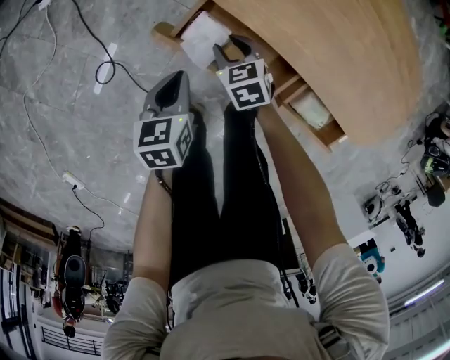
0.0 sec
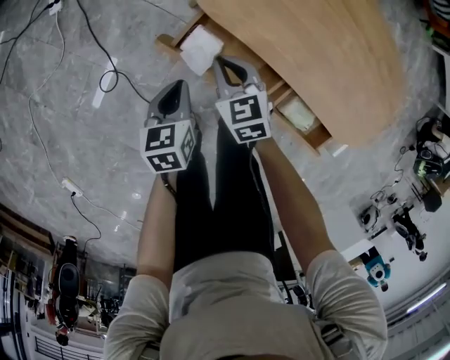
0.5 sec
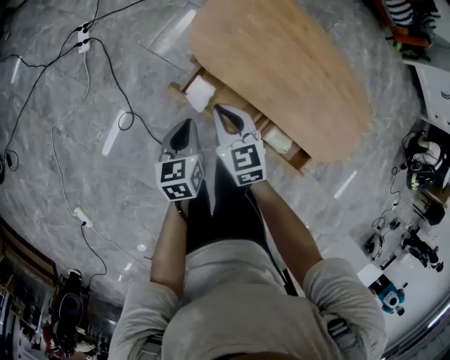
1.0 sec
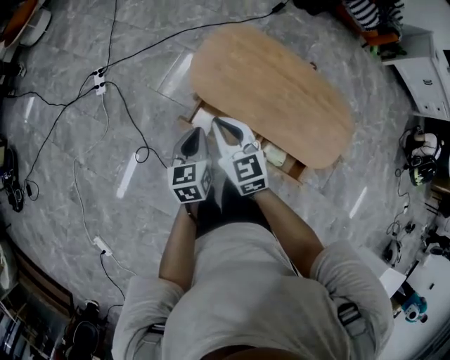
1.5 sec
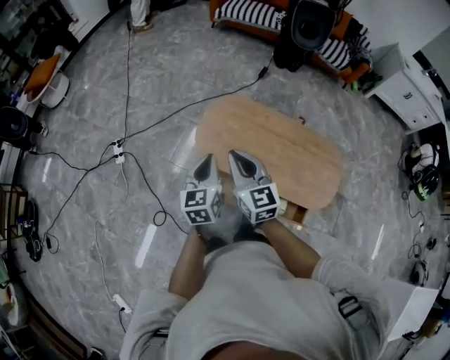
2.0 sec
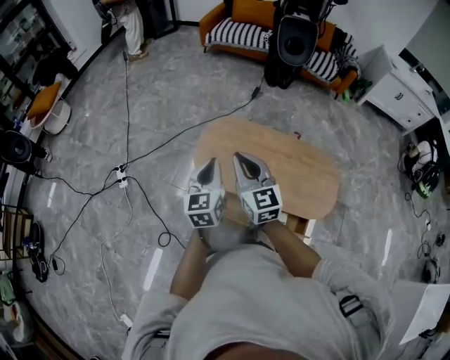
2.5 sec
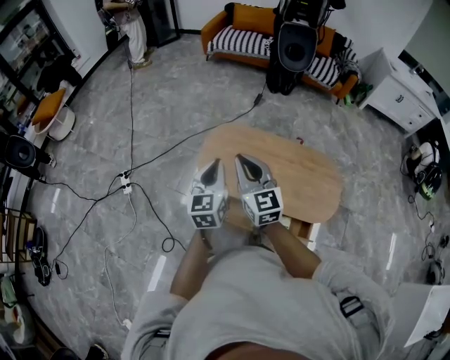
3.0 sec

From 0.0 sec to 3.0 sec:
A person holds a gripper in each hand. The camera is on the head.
From 0.0 sec to 1.5 sec: The grippers both shift upward by some 40 cm. The left gripper swivels about 20 degrees; the right gripper points its fingers approximately 30 degrees further upward, and closes its fingers.
From 1.5 sec to 3.0 sec: The left gripper heads upward, covering roughly 20 cm, and swivels approximately 30 degrees. Meanwhile the right gripper is displaced upward and to the right by about 20 cm, and turns by approximately 30 degrees.

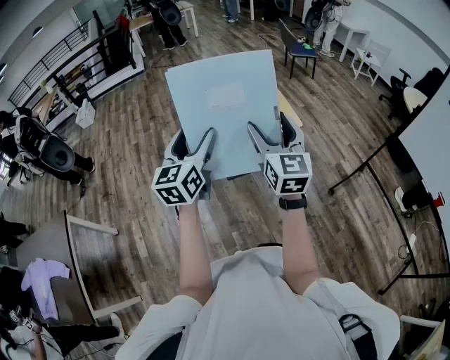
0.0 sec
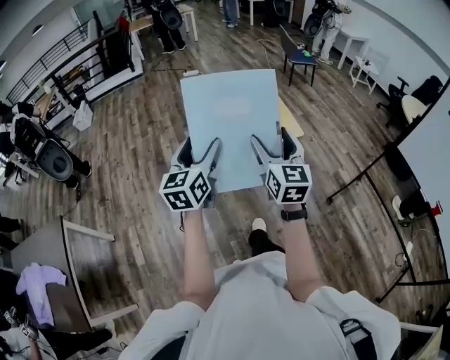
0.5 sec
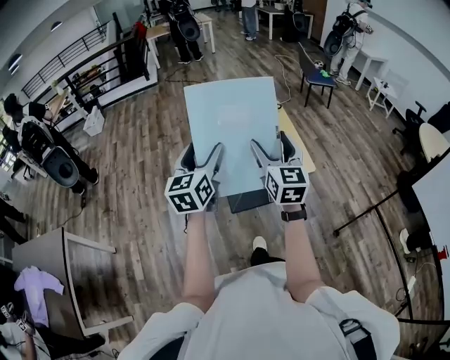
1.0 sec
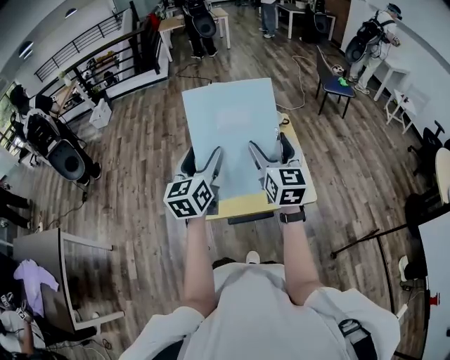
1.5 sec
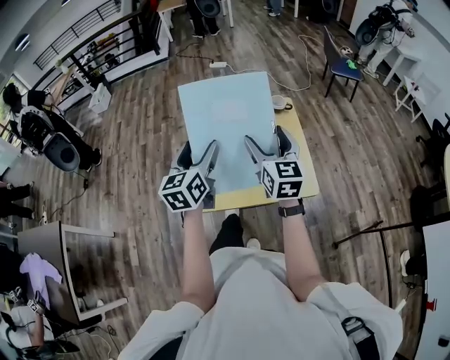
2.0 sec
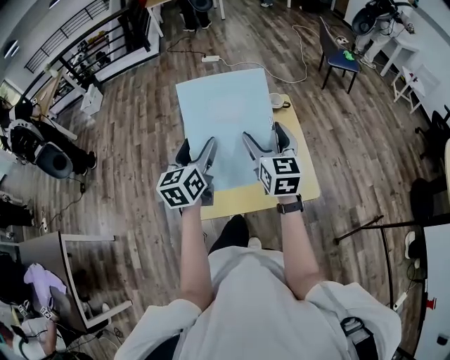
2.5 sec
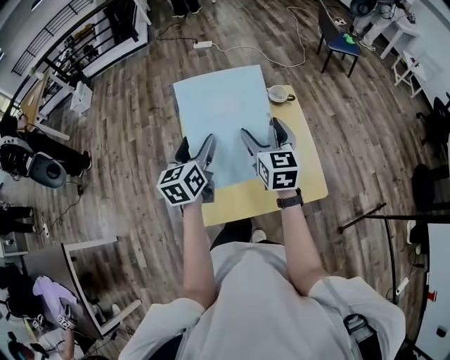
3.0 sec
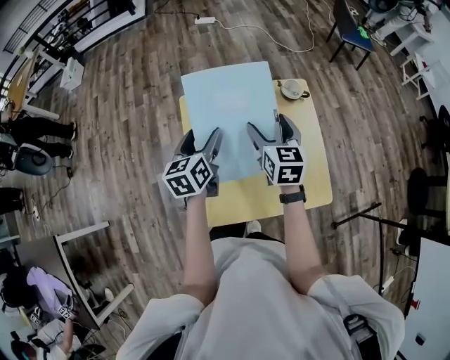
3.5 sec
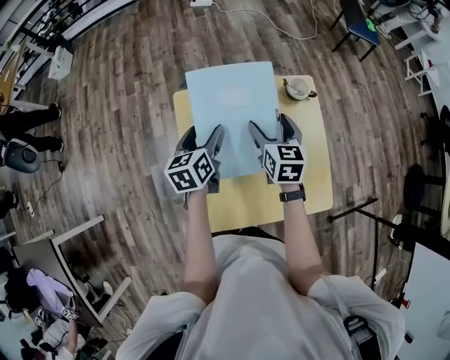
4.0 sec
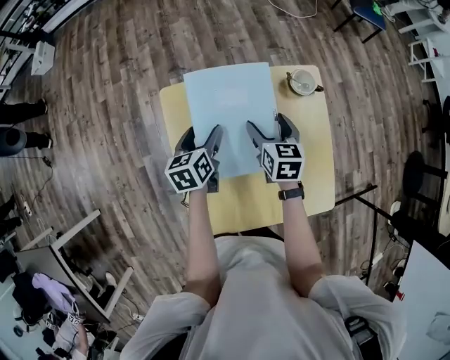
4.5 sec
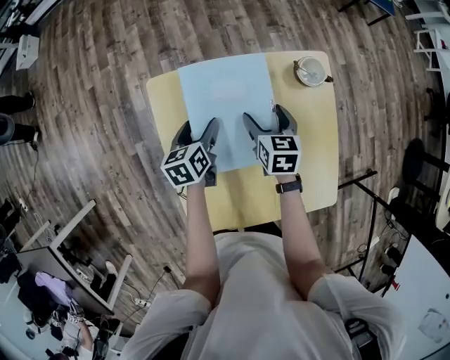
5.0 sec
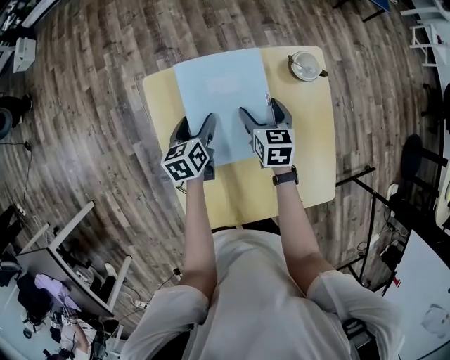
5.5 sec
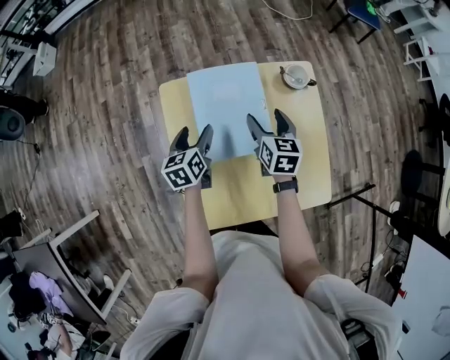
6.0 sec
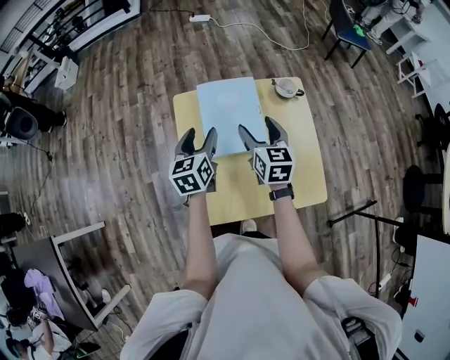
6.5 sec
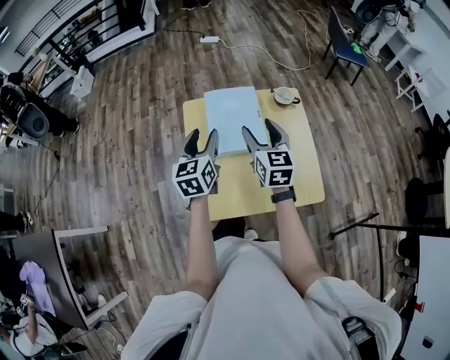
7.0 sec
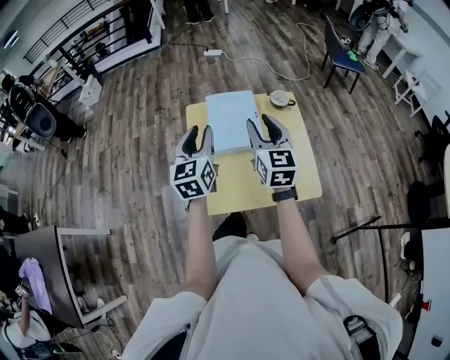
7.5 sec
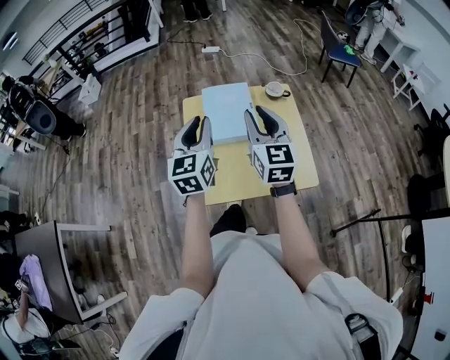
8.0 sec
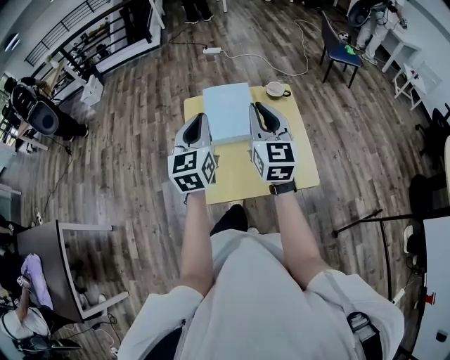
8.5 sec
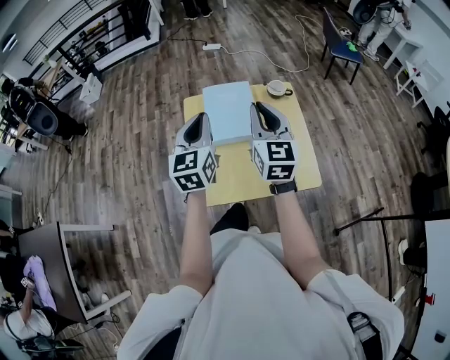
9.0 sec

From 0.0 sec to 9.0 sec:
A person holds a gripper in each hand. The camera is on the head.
From 0.0 sec to 2.0 sec: The grippers both shift forward by about 40 cm.
From 2.0 sec to 4.5 sec: Both grippers move forward and downward, approximately 40 cm. The right gripper angles its fingers downward, by approximately 30 degrees, while the left gripper rotates approximately 30 degrees.
From 4.5 sec to 7.0 sec: The grippers both shift upward and backward by some 25 cm. The right gripper rotates roughly 30 degrees. The left gripper swivels some 30 degrees.
From 7.0 sec to 9.0 sec: The two grippers go approximately 15 cm upward and backward. The right gripper closes up; the left gripper closes.

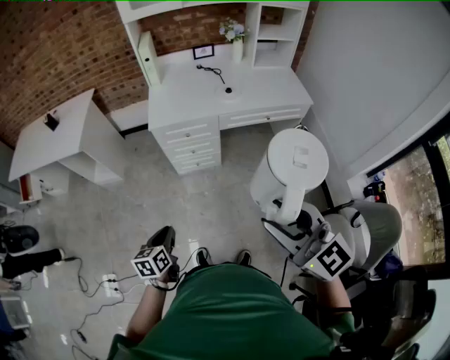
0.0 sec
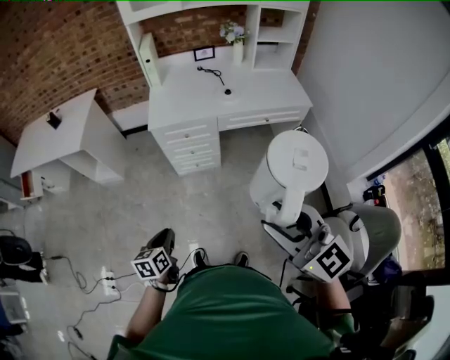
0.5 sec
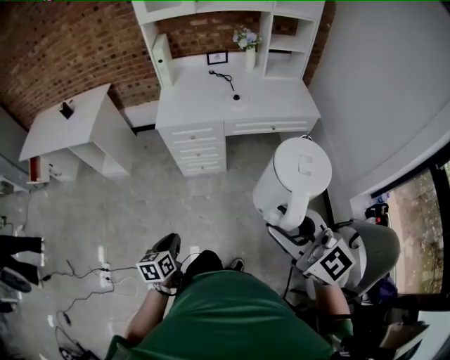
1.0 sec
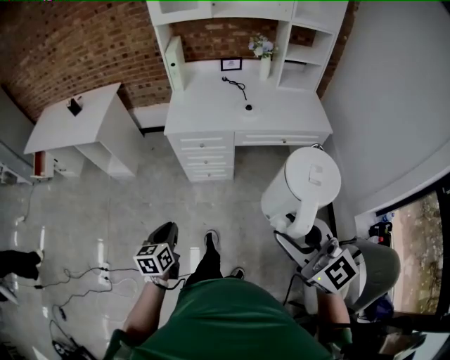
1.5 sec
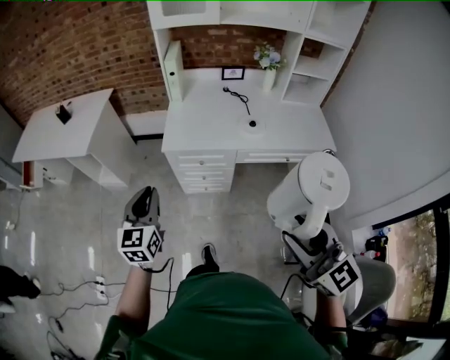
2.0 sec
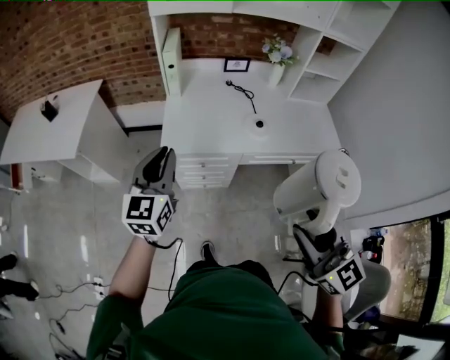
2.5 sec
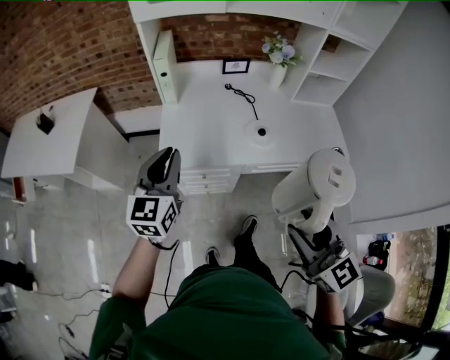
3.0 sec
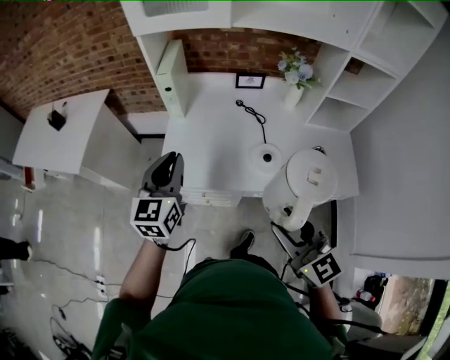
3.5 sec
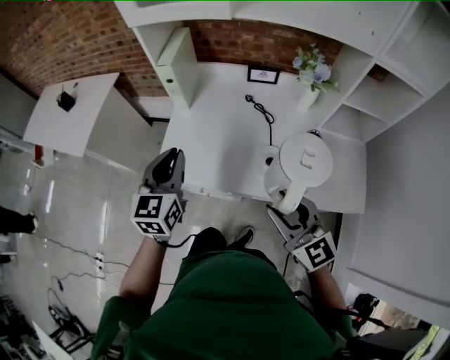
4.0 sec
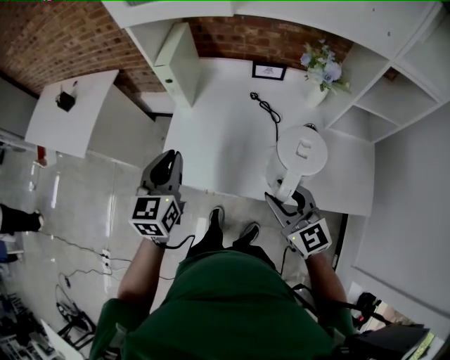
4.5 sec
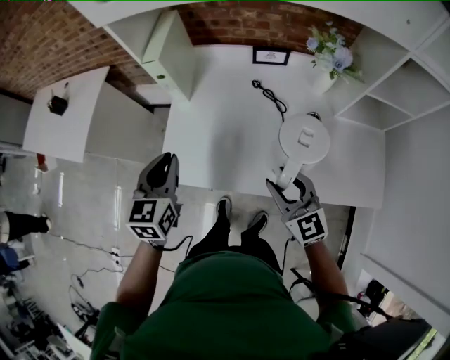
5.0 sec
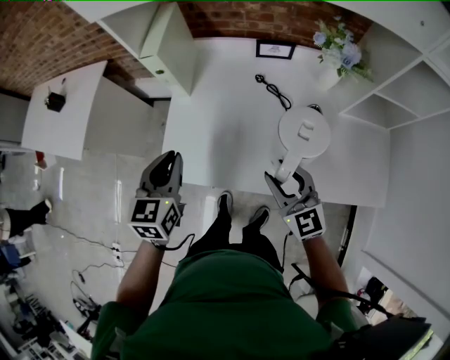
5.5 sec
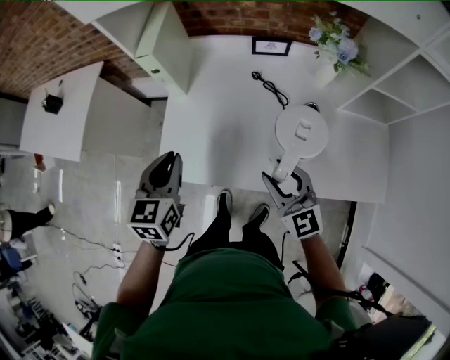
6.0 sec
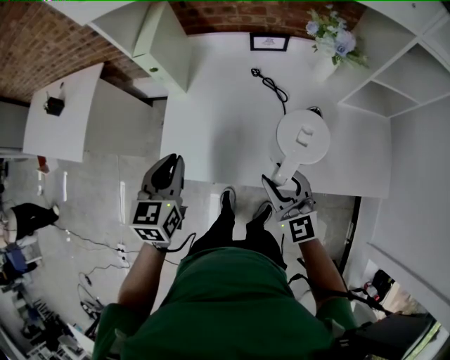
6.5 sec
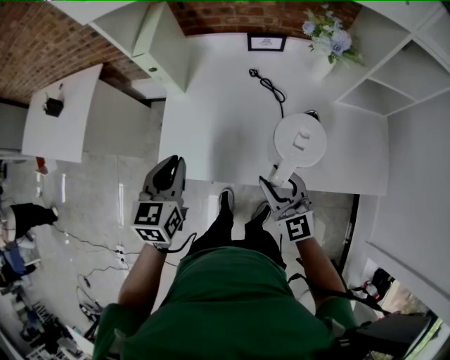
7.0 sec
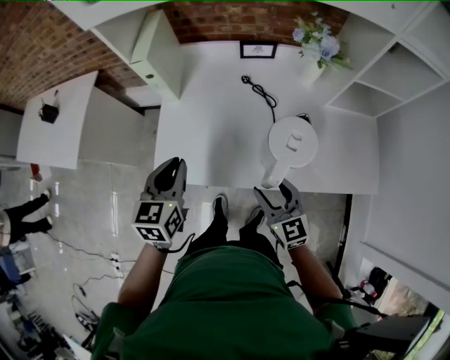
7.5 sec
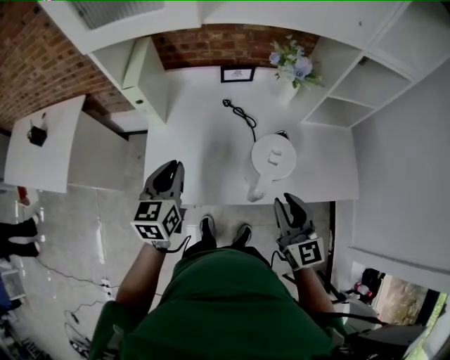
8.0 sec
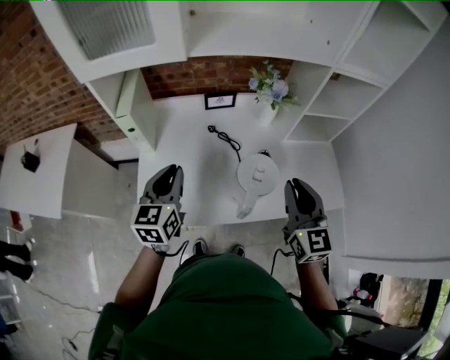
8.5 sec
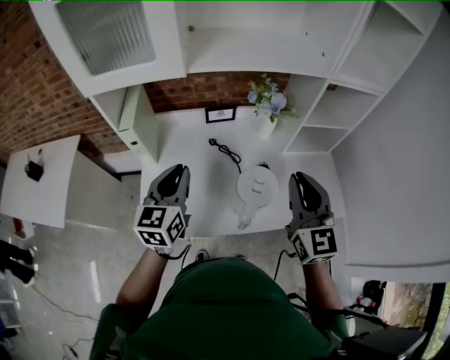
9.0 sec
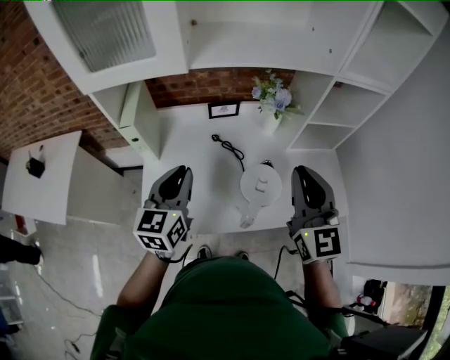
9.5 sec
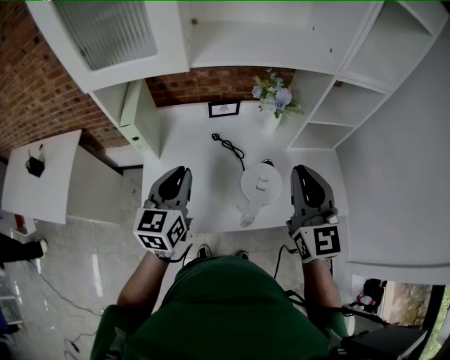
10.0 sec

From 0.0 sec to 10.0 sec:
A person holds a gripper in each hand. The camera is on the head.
From 0.0 sec to 2.0 sec: The left gripper moves forward and upward, approximately 30 cm, and rotates about 40 degrees, while the right gripper heads forward and to the right, covering roughly 15 cm.
From 2.0 sec to 4.0 sec: The two grippers travel together, forward and to the right, roughly 50 cm.
From 4.0 sec to 6.0 sec: The right gripper travels forward and downward by roughly 20 cm. The left gripper travels downward and forward by approximately 10 cm.
From 6.0 sec to 8.0 sec: The right gripper goes some 15 cm backward, to the right and upward, and rotates some 20 degrees. Meanwhile the left gripper shifts by some 5 cm.
From 8.0 sec to 10.0 sec: The left gripper shifts approximately 10 cm upward; the right gripper moves upward and forward, approximately 20 cm.

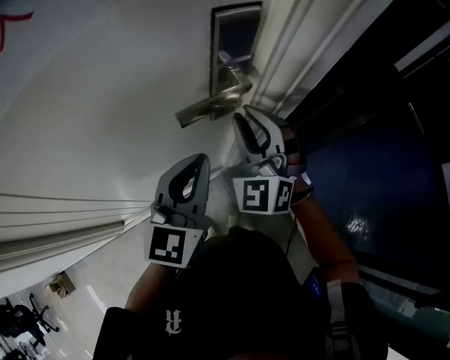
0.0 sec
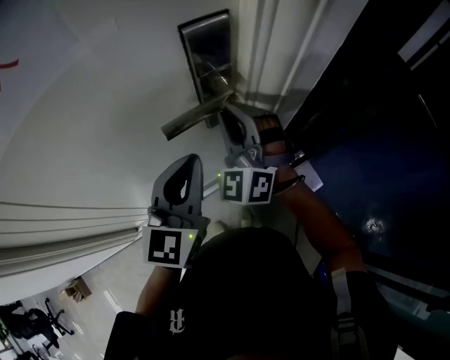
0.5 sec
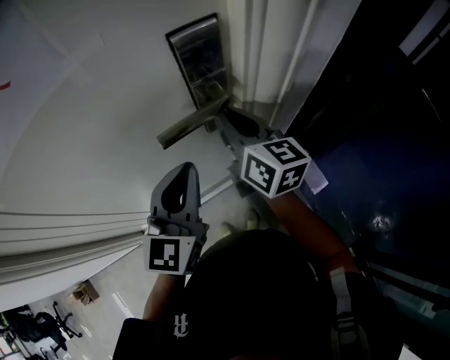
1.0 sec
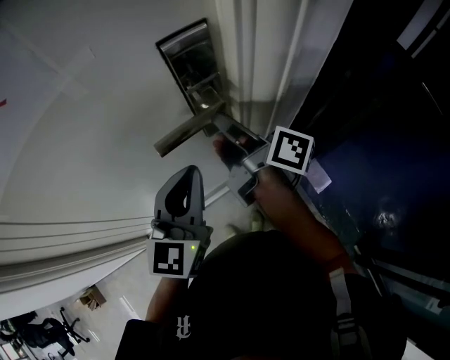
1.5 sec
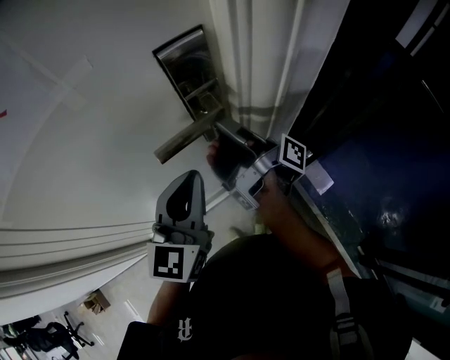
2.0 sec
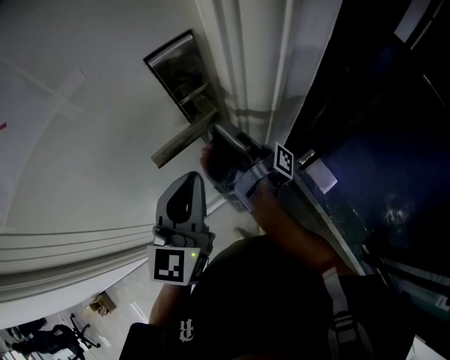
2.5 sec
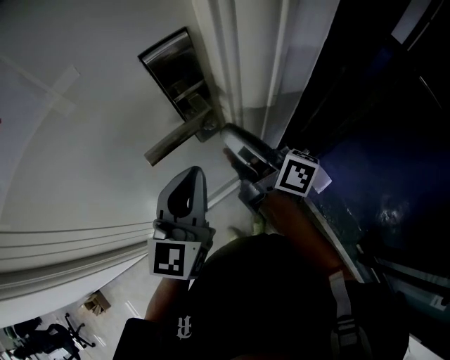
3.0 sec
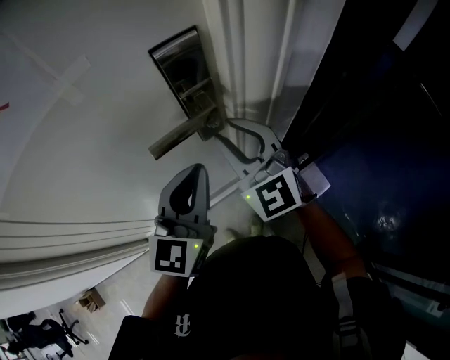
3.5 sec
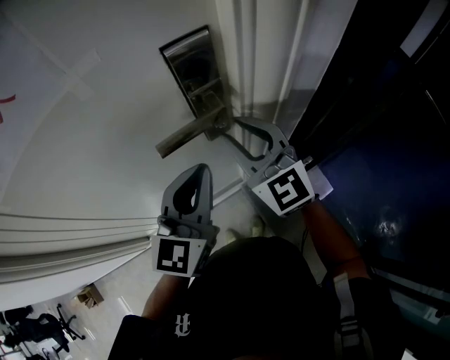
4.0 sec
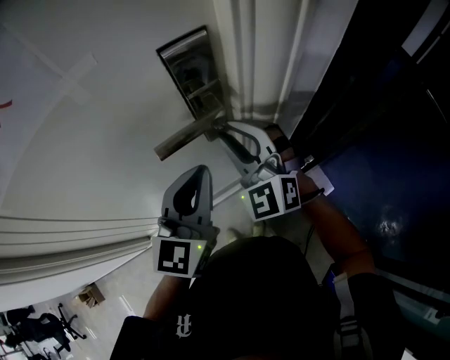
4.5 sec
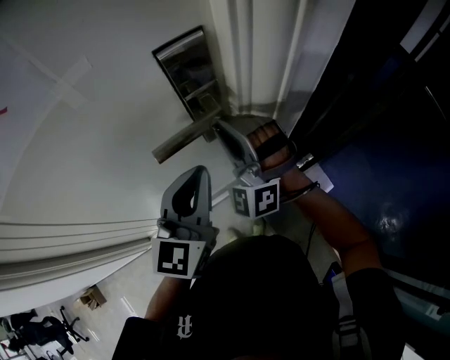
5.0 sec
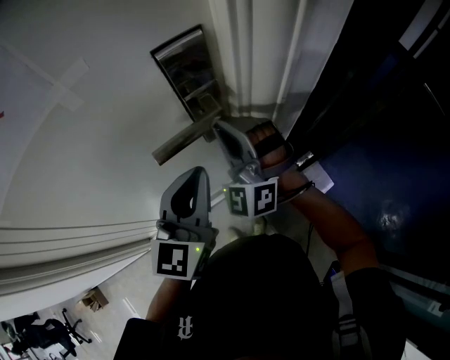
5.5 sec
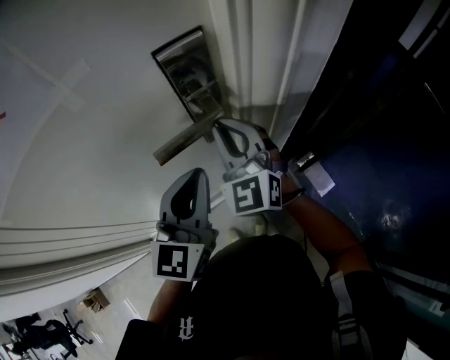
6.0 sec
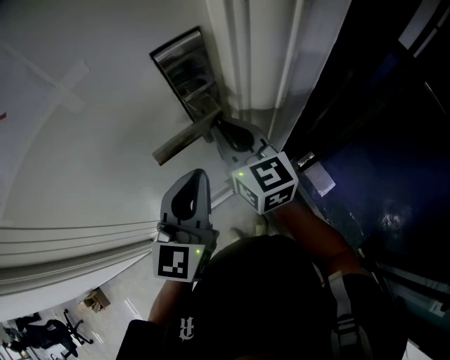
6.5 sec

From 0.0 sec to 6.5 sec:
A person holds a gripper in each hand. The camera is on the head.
From 0.0 sec to 2.0 sec: The right gripper moves about 5 cm, and twists about 160 degrees clockwise, seen from behind.
From 2.0 sec to 4.5 sec: The right gripper rolls counterclockwise, seen from behind, by about 150 degrees.
From 4.5 sec to 6.5 sec: The right gripper rolls clockwise, seen from behind, by about 50 degrees.
